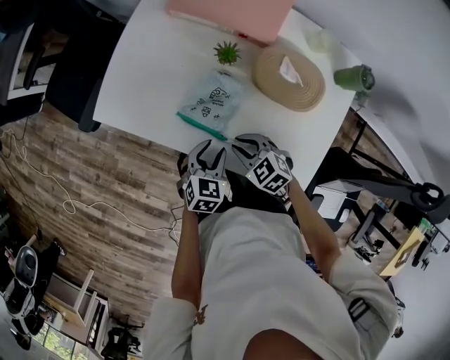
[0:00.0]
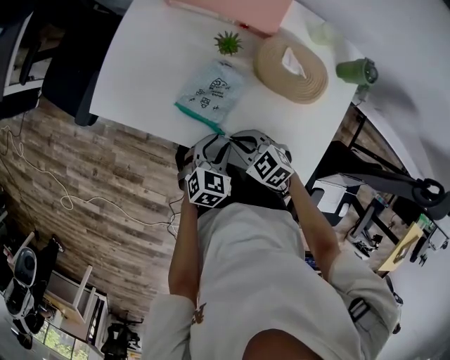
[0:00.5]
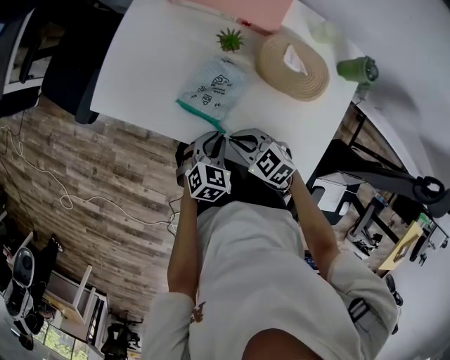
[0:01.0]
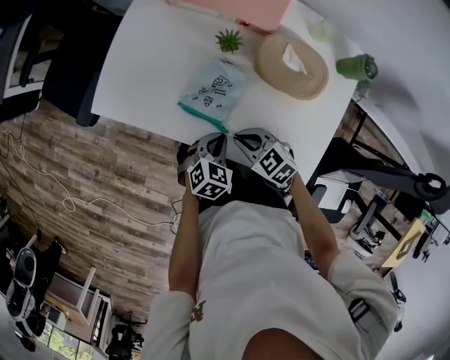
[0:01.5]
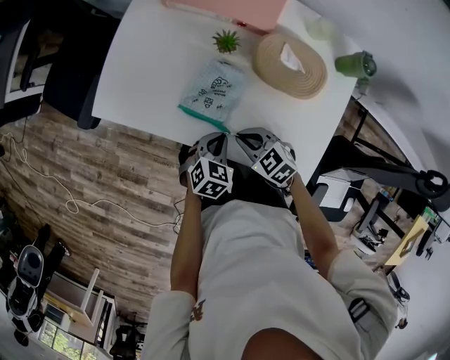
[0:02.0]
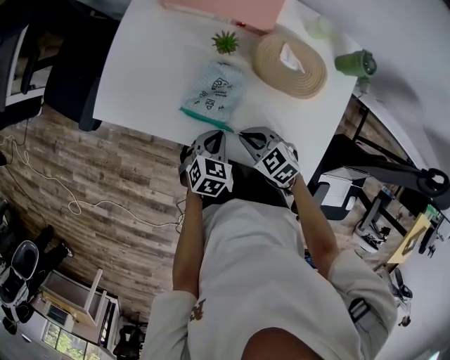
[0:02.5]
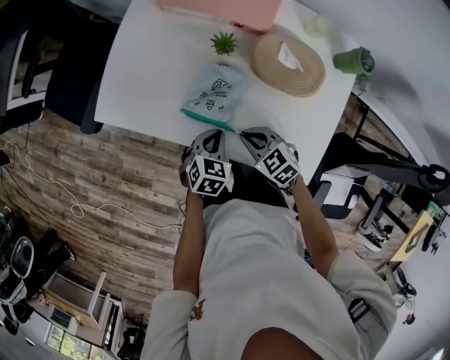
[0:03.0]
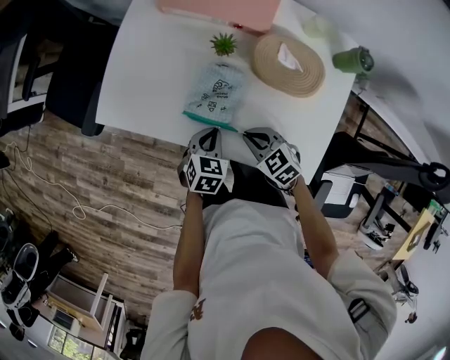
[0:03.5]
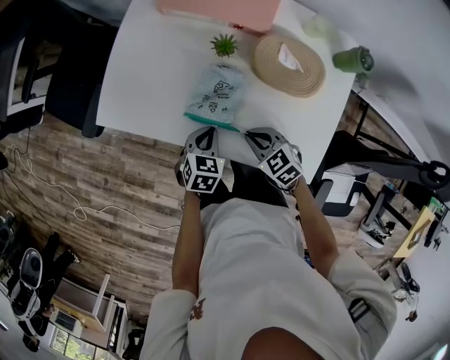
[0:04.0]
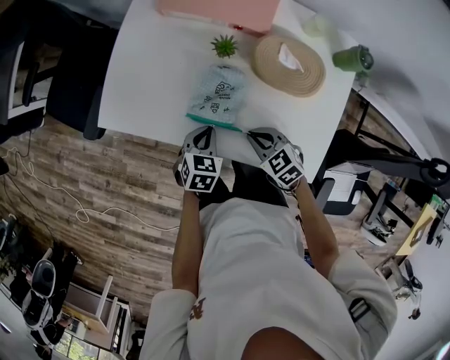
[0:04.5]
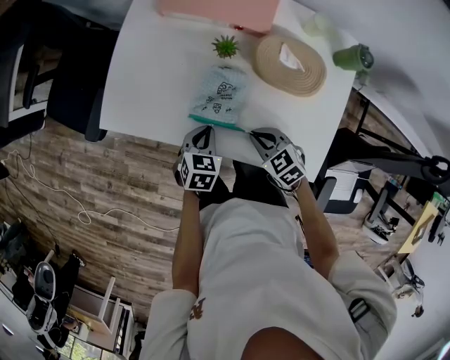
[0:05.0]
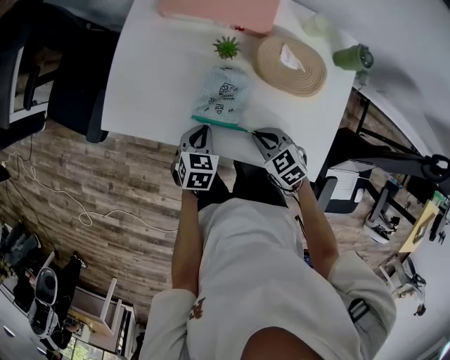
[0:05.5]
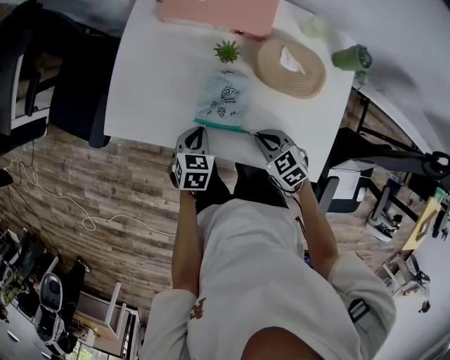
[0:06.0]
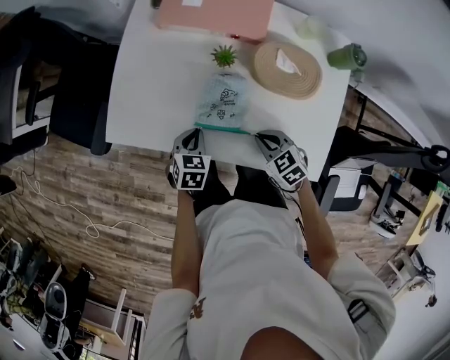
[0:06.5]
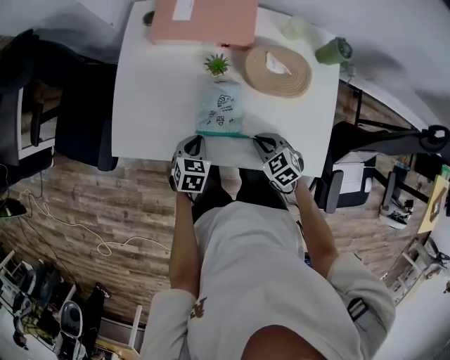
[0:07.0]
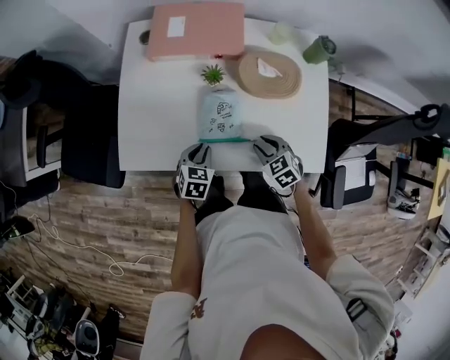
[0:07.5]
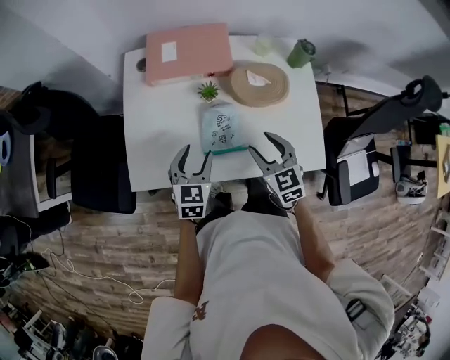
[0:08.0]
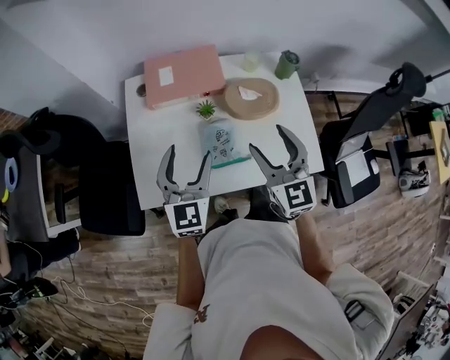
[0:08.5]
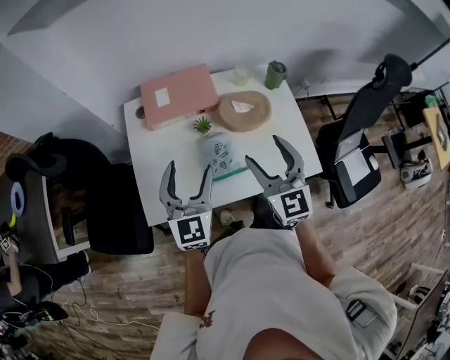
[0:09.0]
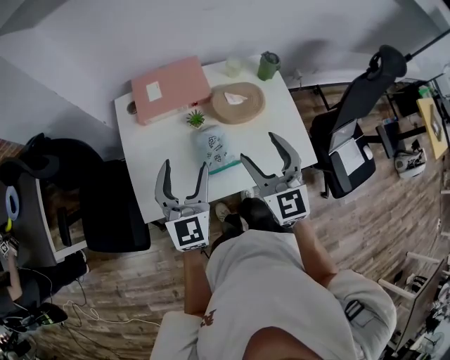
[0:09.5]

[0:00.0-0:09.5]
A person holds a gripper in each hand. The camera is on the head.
0:00.0 to 0:02.0: The left gripper closes up.
0:02.0 to 0:04.0: The left gripper ends up roughly 5 cm from where it was.
0:04.0 to 0:05.5: The grippers move only a little.
0:05.5 to 0:07.5: The right gripper turns by approximately 20 degrees, and opens its fingers.
0:07.5 to 0:09.5: Both grippers travel together upward, approximately 30 cm. The right gripper tilts its fingers roughly 50 degrees upward, and opens its fingers; the left gripper tilts its fingers approximately 40 degrees upward, and opens.

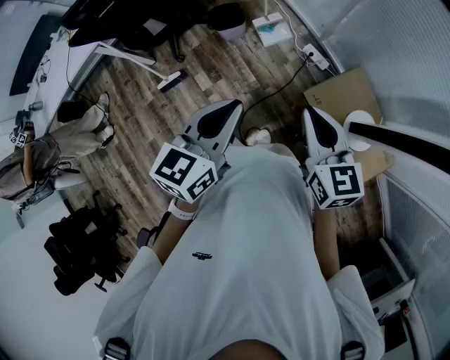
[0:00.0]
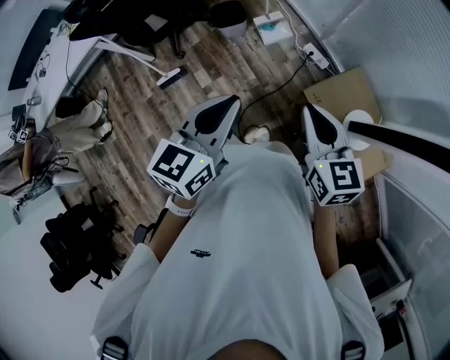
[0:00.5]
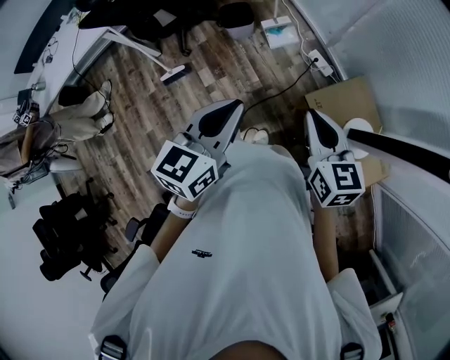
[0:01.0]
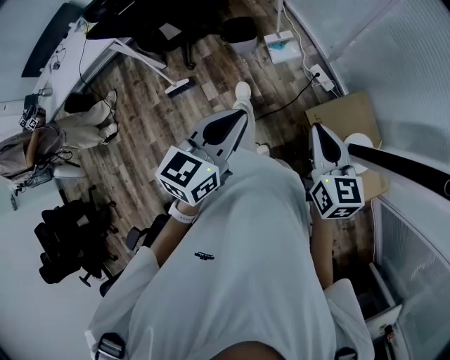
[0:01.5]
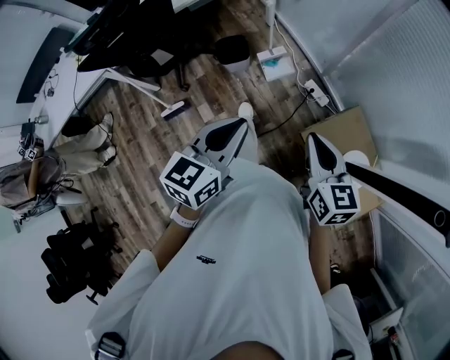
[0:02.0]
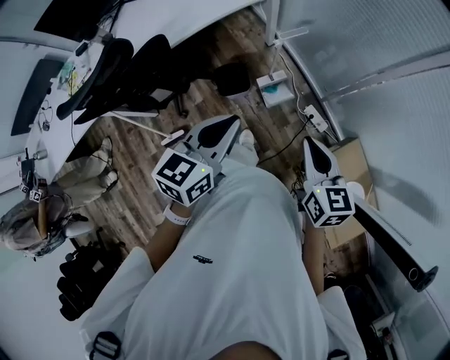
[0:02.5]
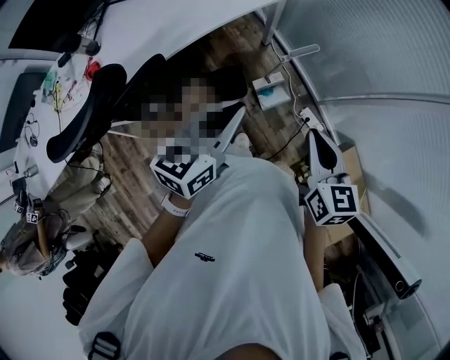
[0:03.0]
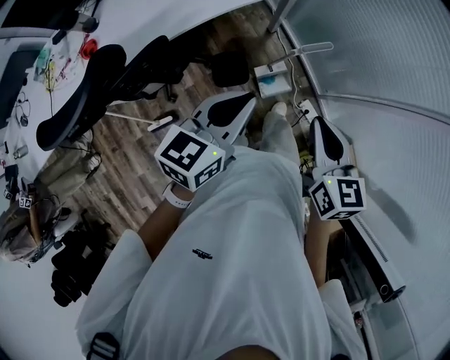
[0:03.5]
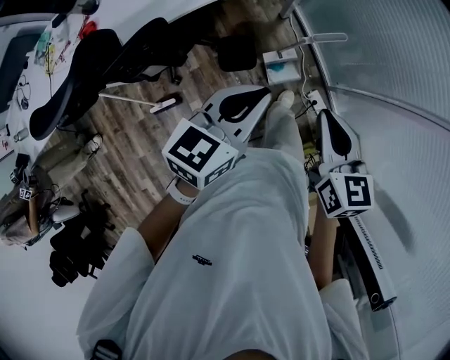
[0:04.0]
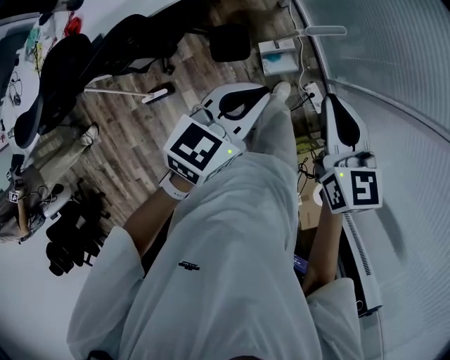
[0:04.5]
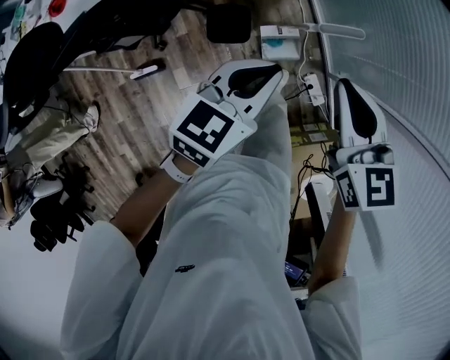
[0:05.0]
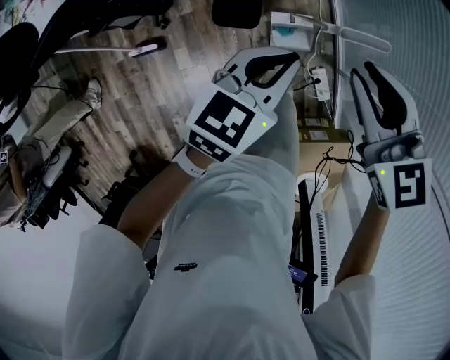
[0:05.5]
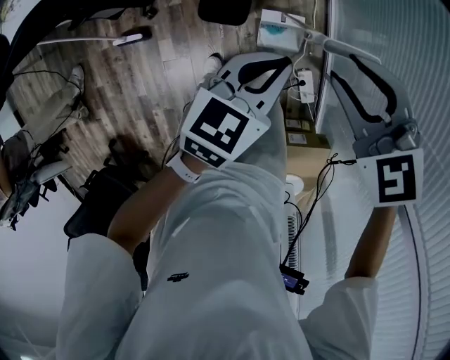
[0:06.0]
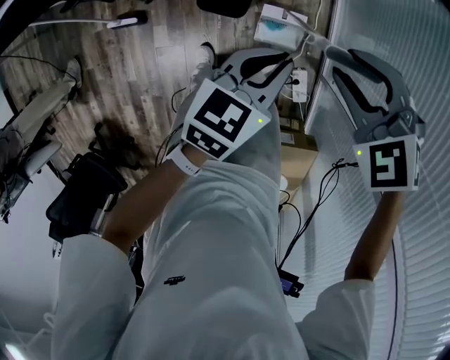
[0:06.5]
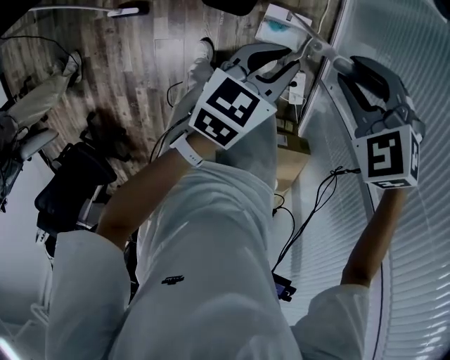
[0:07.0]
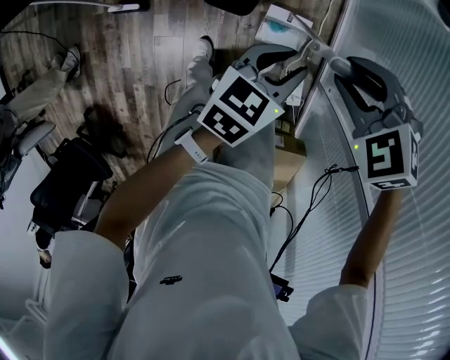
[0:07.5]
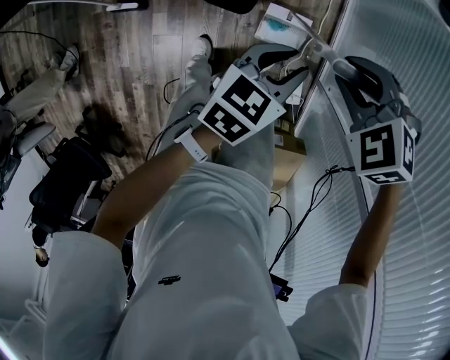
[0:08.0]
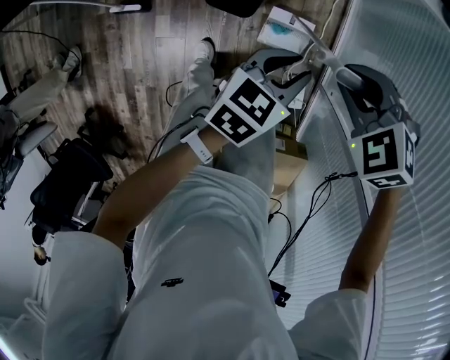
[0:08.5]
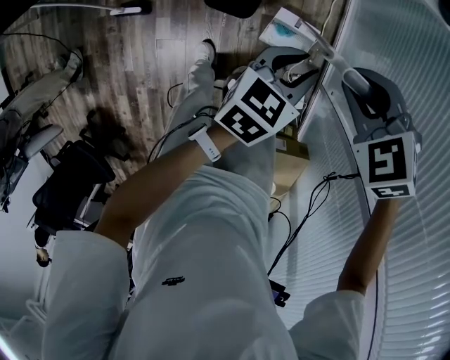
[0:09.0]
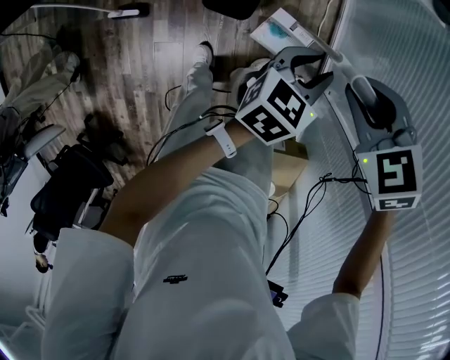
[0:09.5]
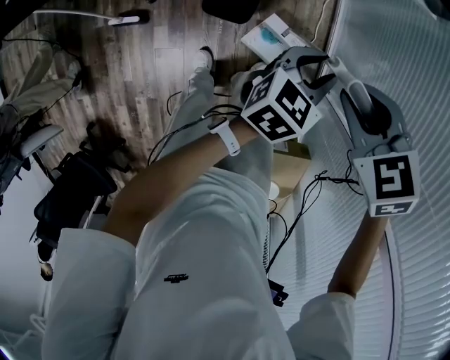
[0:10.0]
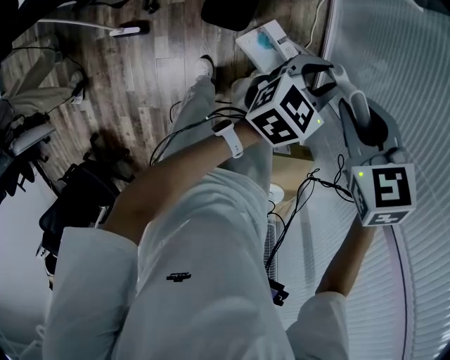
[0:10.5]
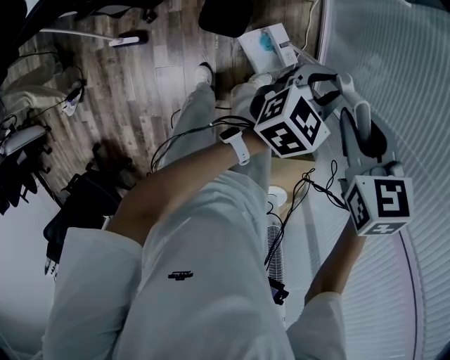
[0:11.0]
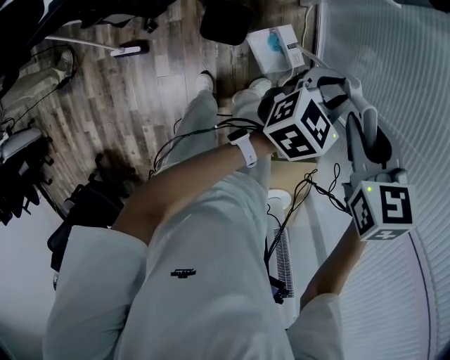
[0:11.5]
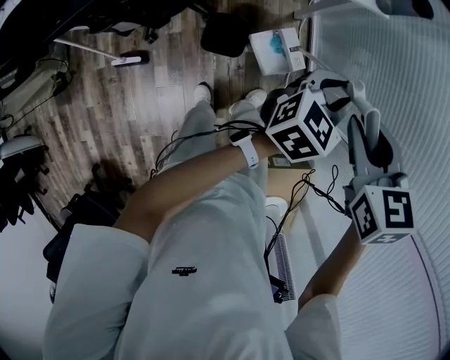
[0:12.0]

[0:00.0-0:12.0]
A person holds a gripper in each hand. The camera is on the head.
0:00.0 to 0:02.0: The grippers both shift forward by some 10 cm.
0:02.0 to 0:04.0: The pair of grippers is taken forward, about 40 cm.
0:04.0 to 0:06.0: The left gripper is displaced downward by approximately 20 cm, and turns by some 20 degrees. Meanwhile the right gripper changes place by roughly 25 cm, swivels some 70 degrees, and opens its fingers.
0:06.0 to 0:08.0: Both grippers travel together downward, approximately 10 cm. The right gripper swivels some 30 degrees. The left gripper opens up.
0:08.0 to 0:10.0: The right gripper travels upward by roughly 5 cm, and rotates approximately 30 degrees; the left gripper shifts by about 5 cm.
0:10.0 to 0:12.0: The grippers both shift upward by approximately 15 cm. The right gripper rotates some 30 degrees.

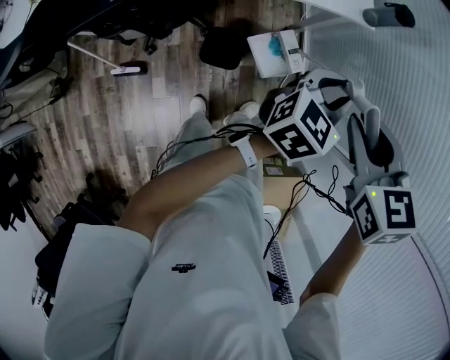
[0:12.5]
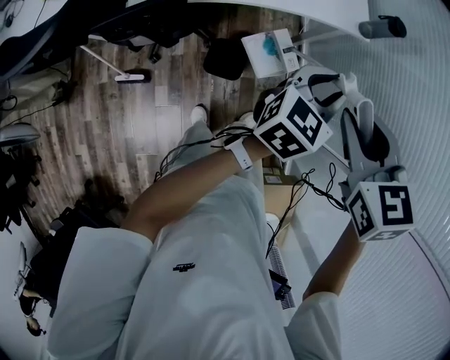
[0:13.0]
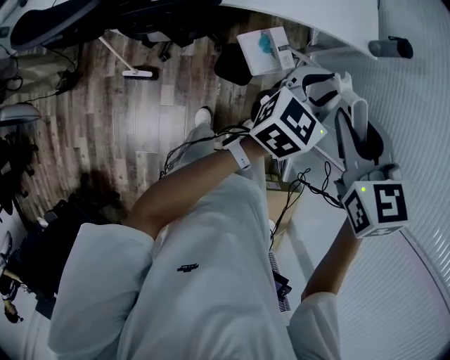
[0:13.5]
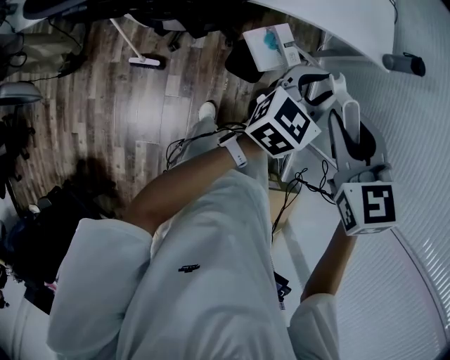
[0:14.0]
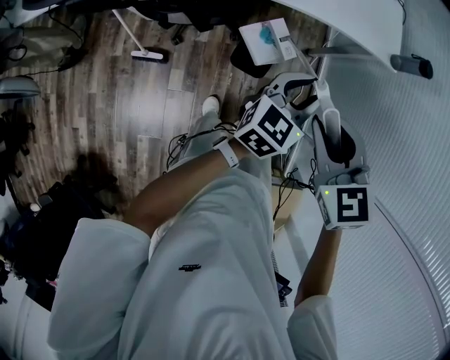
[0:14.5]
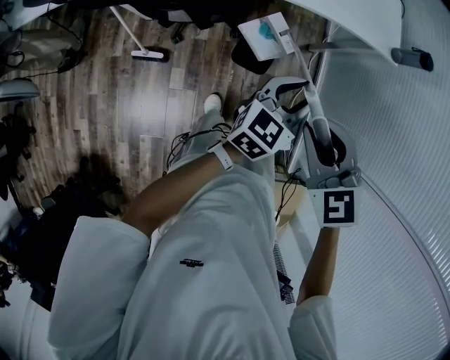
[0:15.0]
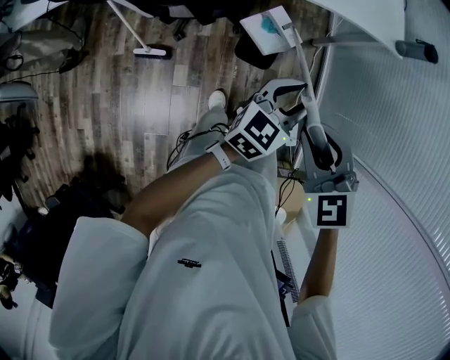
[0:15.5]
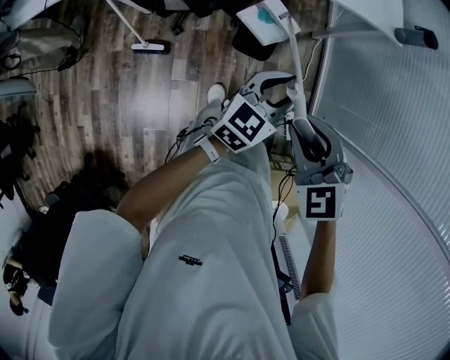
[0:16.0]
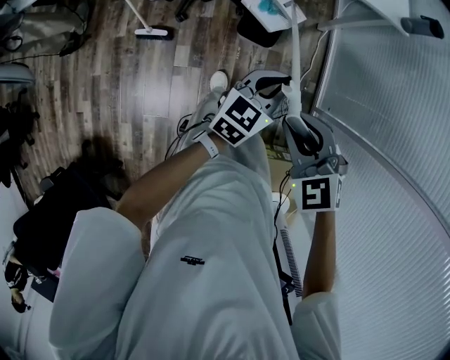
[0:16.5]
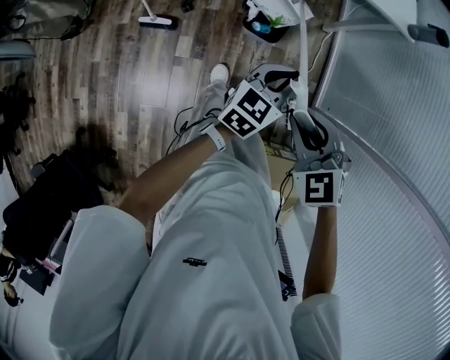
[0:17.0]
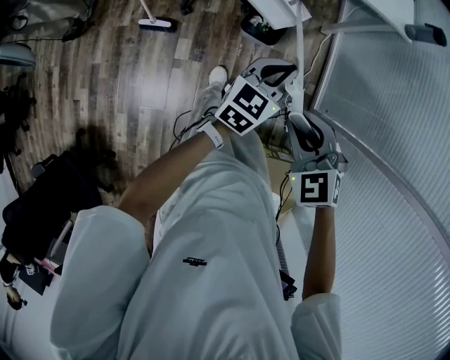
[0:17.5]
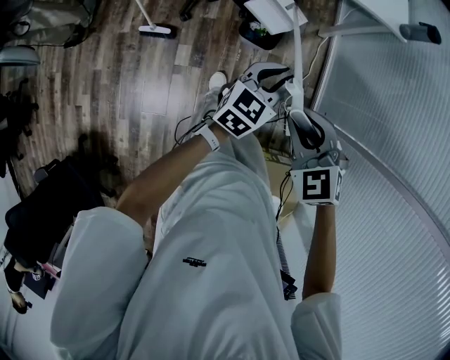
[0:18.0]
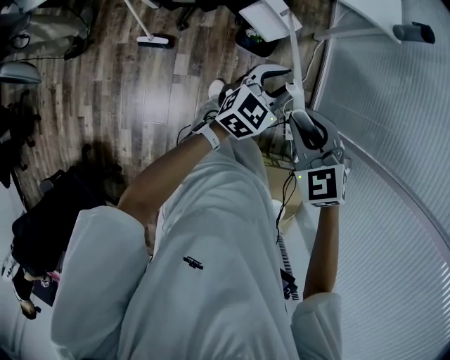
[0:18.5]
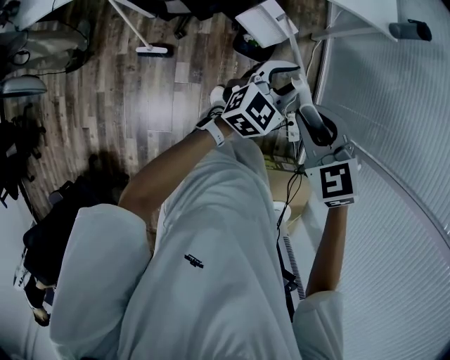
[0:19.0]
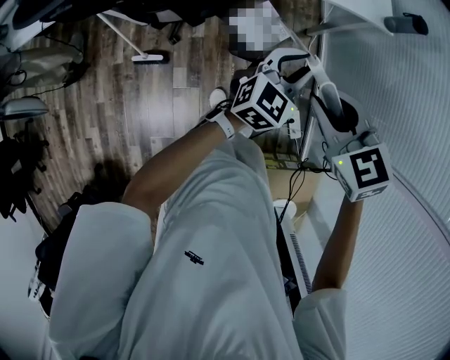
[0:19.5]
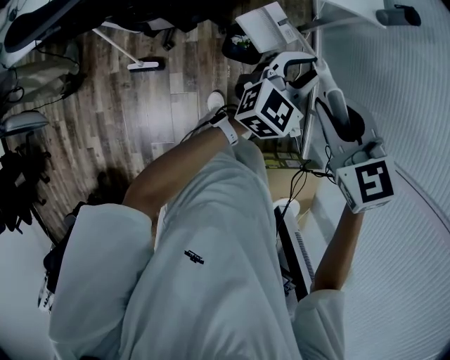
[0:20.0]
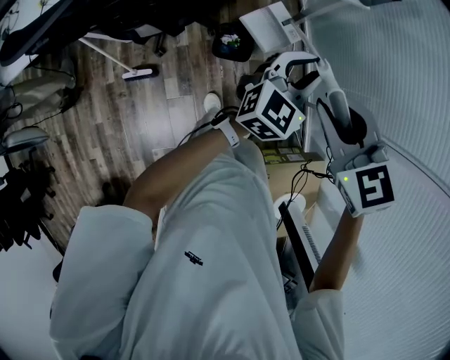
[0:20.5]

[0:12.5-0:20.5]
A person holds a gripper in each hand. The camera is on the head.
0:12.5 to 0:14.5: The grippers both shift to the left by approximately 20 cm. The right gripper swivels some 20 degrees.
0:14.5 to 0:16.5: The grippers both shift backward and downward by some 20 cm. The left gripper closes.
0:16.5 to 0:18.5: The left gripper opens up.
0:18.5 to 0:20.5: The right gripper goes roughly 15 cm upward, forward and to the right, and turns by approximately 20 degrees, while the left gripper shifts some 15 cm upward, to the right and forward.
